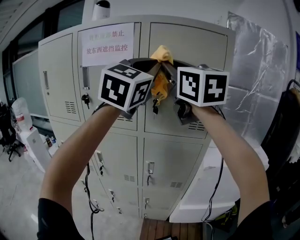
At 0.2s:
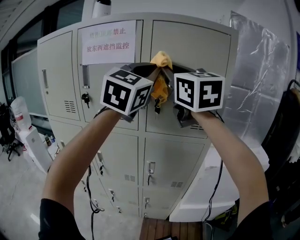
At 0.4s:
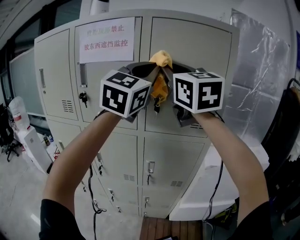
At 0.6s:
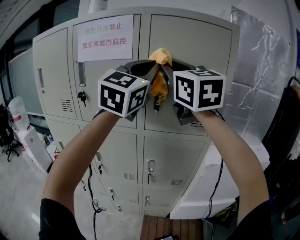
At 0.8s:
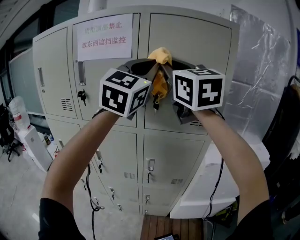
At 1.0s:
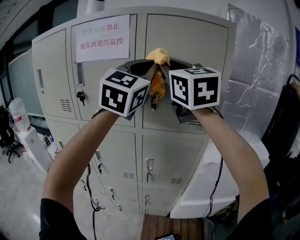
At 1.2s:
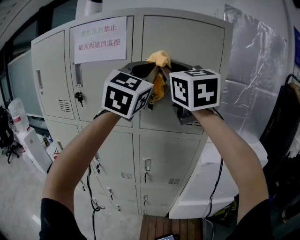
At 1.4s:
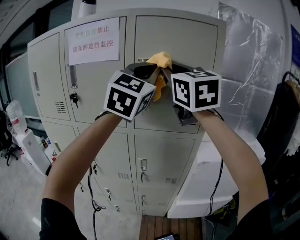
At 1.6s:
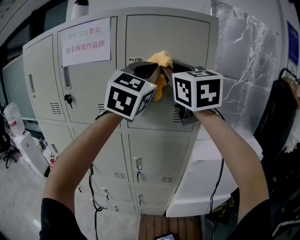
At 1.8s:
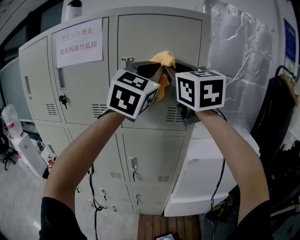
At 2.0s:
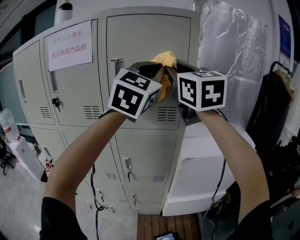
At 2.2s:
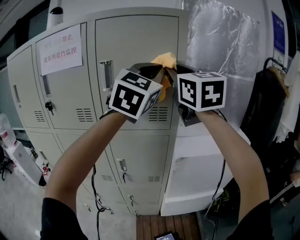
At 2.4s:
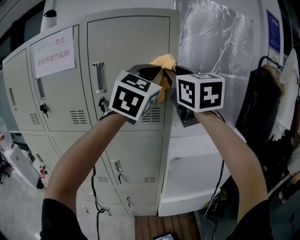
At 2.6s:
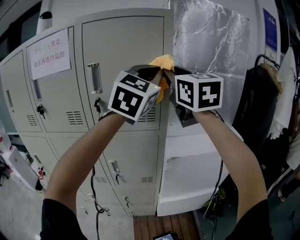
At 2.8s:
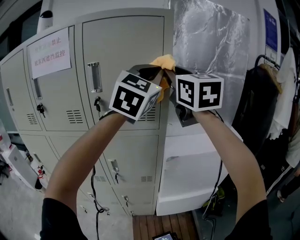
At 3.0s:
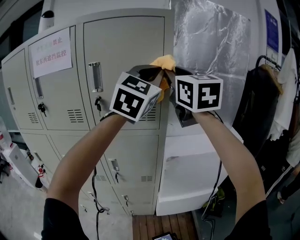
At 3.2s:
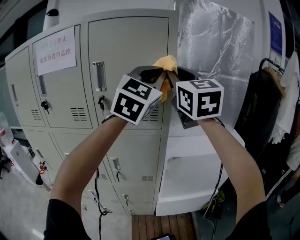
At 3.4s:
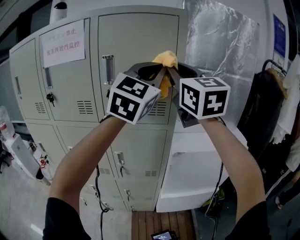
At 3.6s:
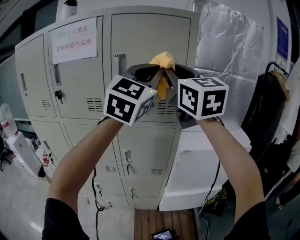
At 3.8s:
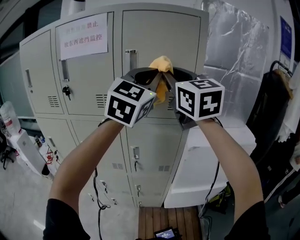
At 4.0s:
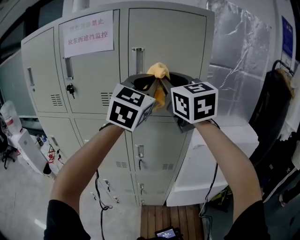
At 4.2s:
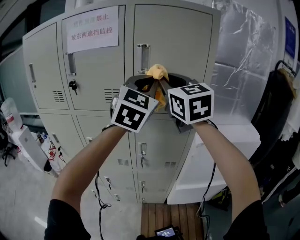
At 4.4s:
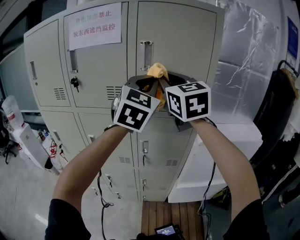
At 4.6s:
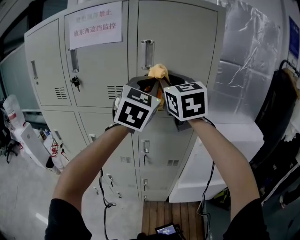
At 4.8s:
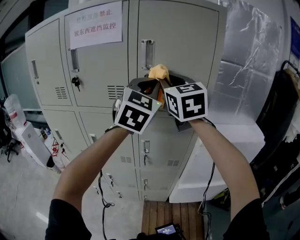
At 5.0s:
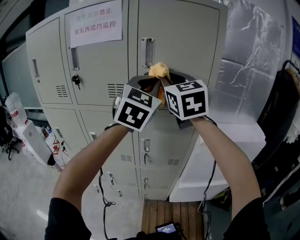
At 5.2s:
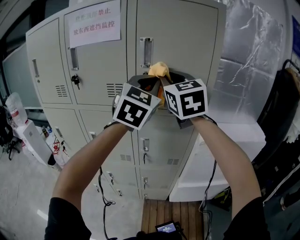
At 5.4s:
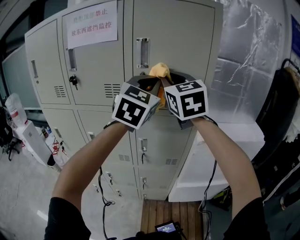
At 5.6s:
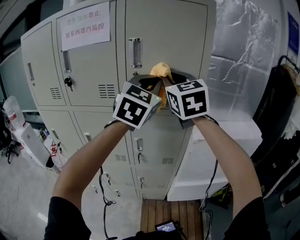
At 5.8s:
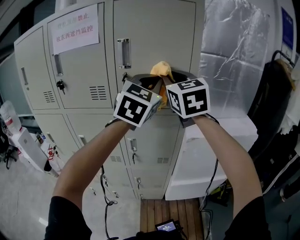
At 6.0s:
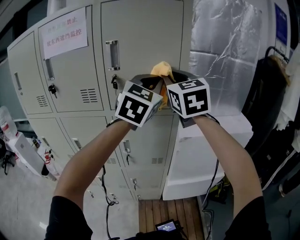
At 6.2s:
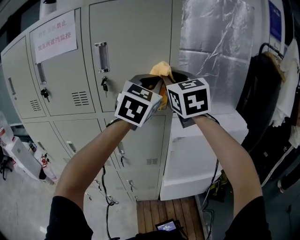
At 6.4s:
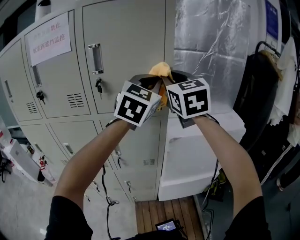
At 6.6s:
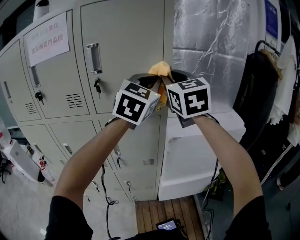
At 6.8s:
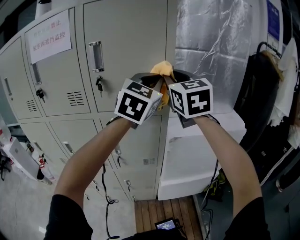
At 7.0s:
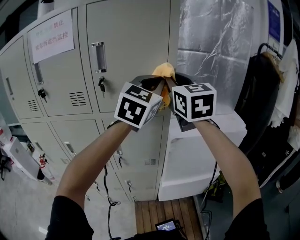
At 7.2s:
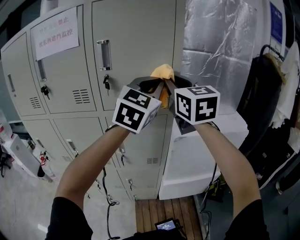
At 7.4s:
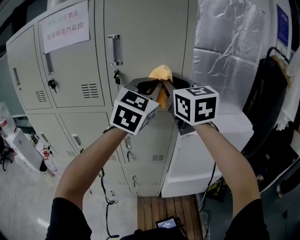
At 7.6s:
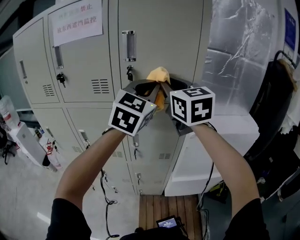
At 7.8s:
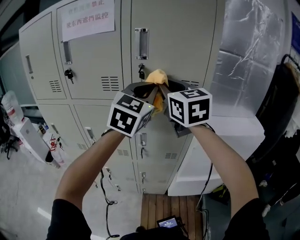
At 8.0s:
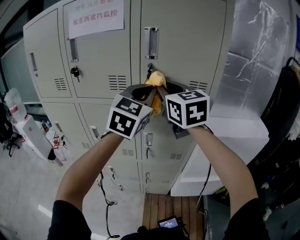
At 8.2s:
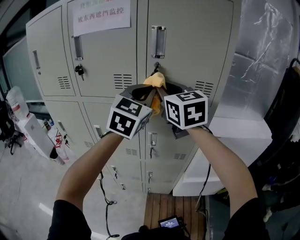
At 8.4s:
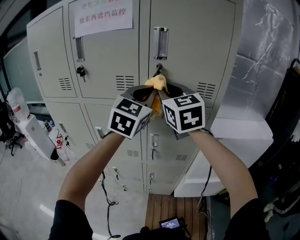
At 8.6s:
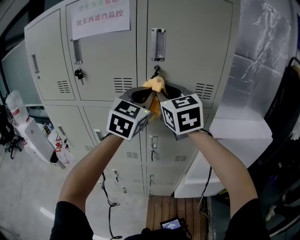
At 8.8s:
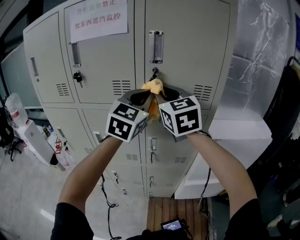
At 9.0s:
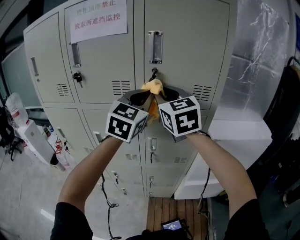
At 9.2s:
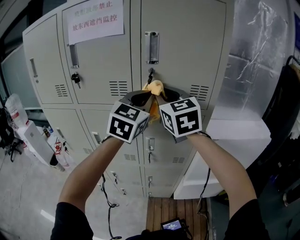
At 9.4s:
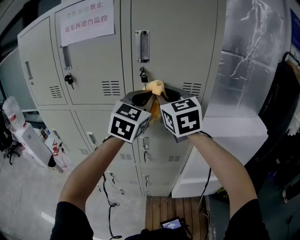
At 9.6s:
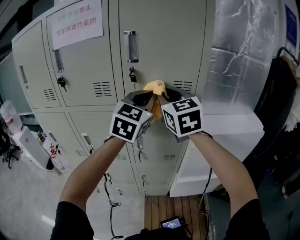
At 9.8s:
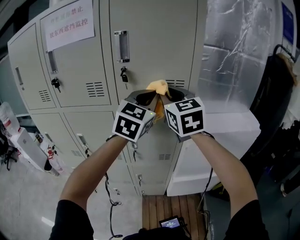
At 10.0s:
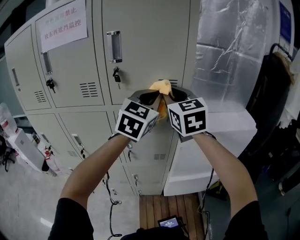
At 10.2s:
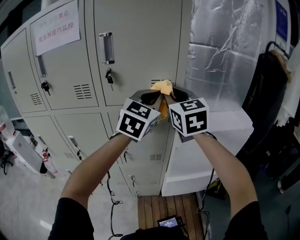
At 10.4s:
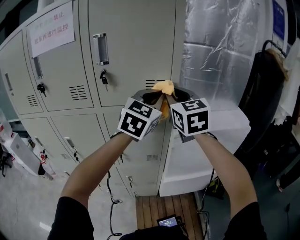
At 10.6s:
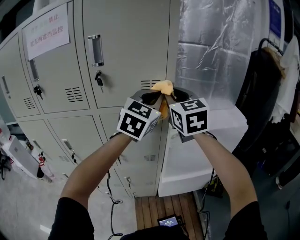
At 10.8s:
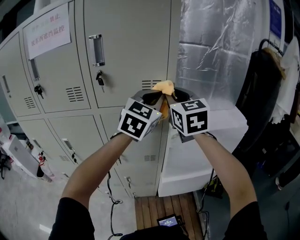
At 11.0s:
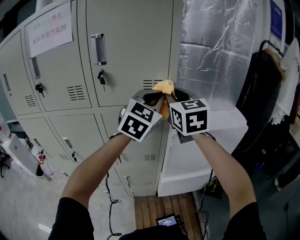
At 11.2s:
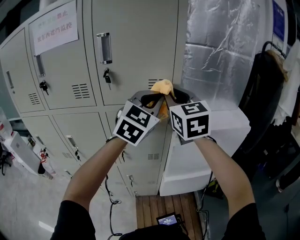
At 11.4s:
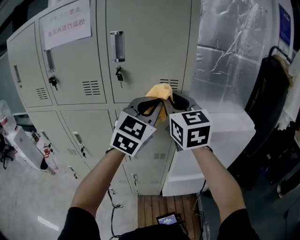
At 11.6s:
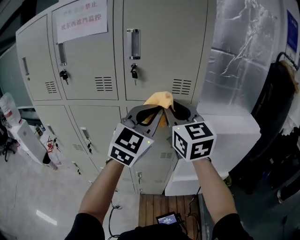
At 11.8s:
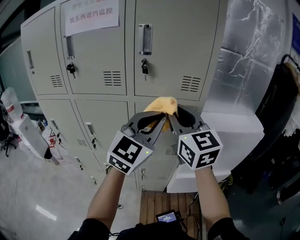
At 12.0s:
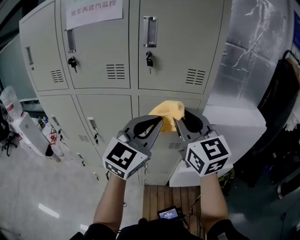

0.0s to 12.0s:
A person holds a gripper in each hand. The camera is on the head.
0.0s to 1.6s: The two grippers go approximately 5 cm to the right.
1.6s to 3.0s: The grippers both shift to the right by roughly 15 cm.
3.0s to 4.4s: The two grippers go approximately 20 cm to the left and downward.
4.4s to 6.0s: Both grippers move to the right, approximately 15 cm.
6.0s to 7.6s: The two grippers go approximately 5 cm to the left.
7.6s to 9.0s: Both grippers travel together to the left, some 10 cm.
9.0s to 10.4s: The grippers both shift to the right by about 20 cm.
10.4s to 12.0s: Both grippers travel together backward and to the left, roughly 20 cm.

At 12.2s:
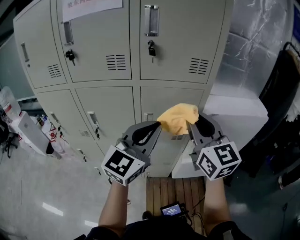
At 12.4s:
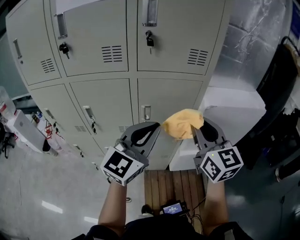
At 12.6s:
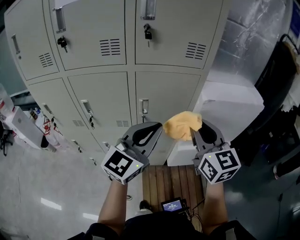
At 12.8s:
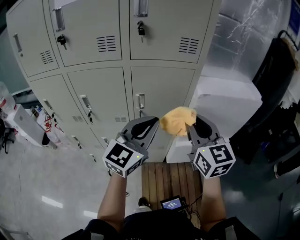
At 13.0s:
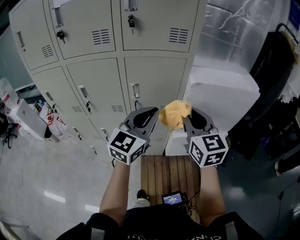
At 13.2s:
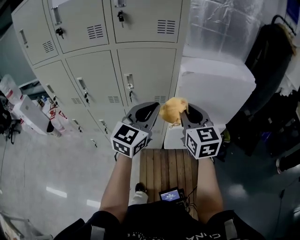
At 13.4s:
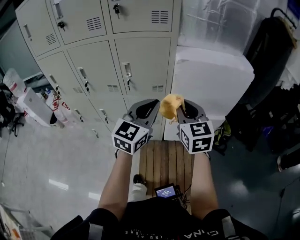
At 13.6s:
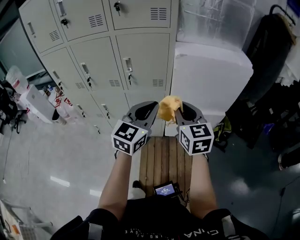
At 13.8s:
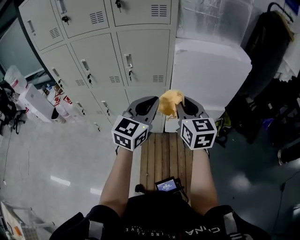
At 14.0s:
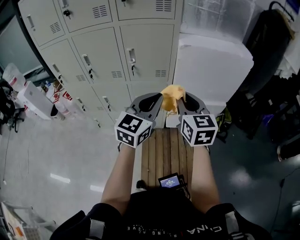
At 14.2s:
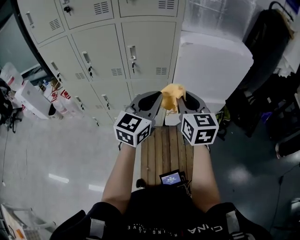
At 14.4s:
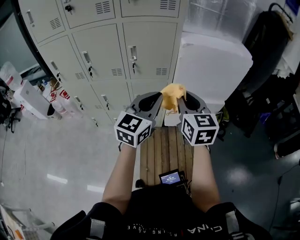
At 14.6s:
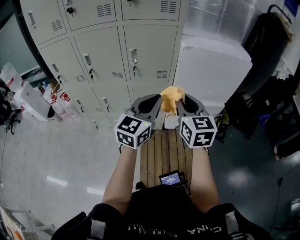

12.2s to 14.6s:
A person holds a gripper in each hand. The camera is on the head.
12.2s to 13.4s: The grippers both shift to the right, downward and backward by some 25 cm.
13.4s to 14.6s: Both grippers move backward, about 5 cm.

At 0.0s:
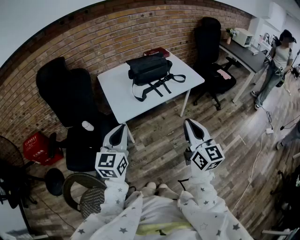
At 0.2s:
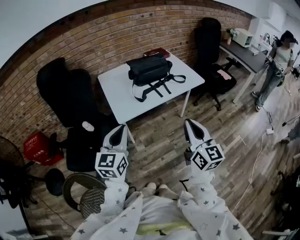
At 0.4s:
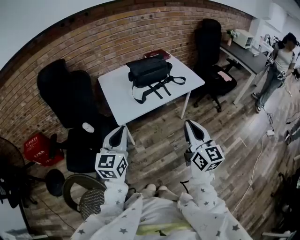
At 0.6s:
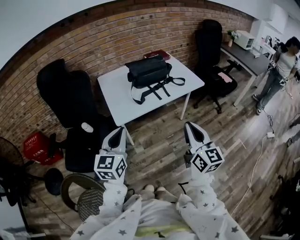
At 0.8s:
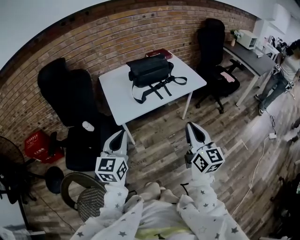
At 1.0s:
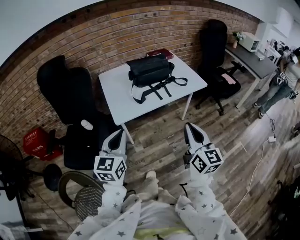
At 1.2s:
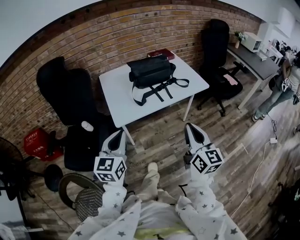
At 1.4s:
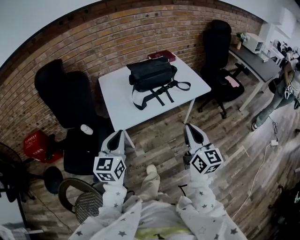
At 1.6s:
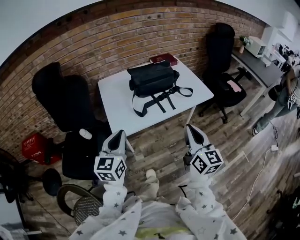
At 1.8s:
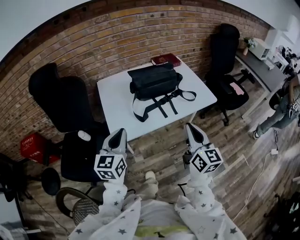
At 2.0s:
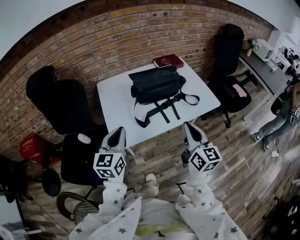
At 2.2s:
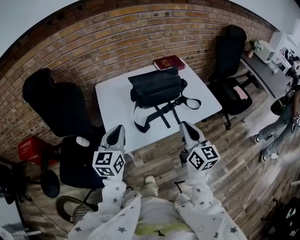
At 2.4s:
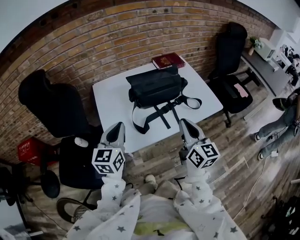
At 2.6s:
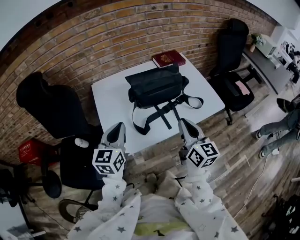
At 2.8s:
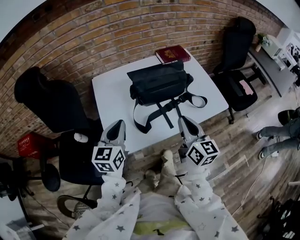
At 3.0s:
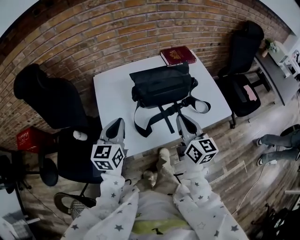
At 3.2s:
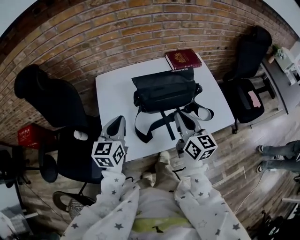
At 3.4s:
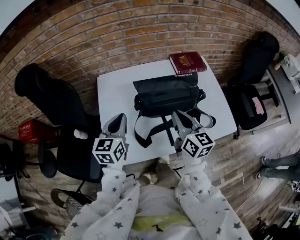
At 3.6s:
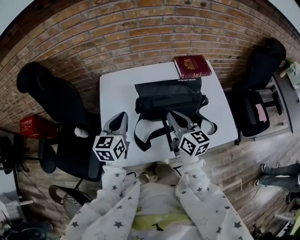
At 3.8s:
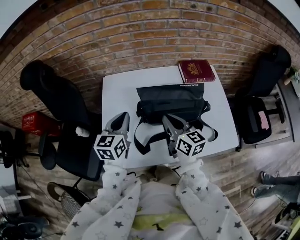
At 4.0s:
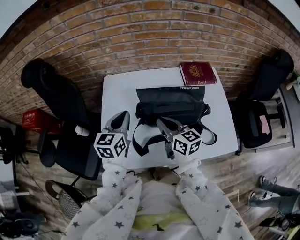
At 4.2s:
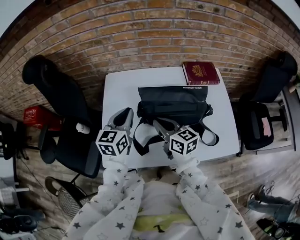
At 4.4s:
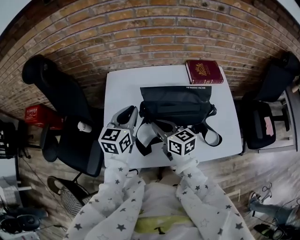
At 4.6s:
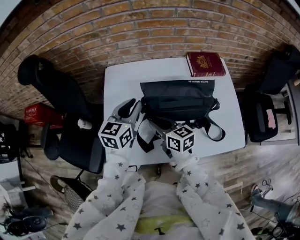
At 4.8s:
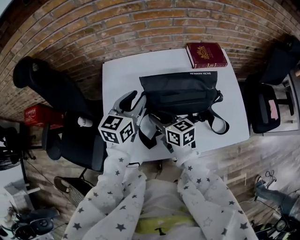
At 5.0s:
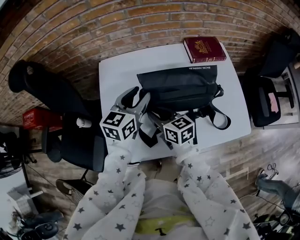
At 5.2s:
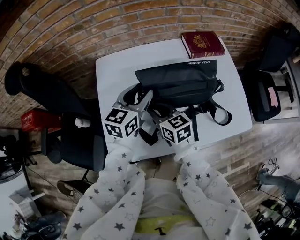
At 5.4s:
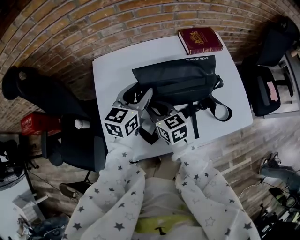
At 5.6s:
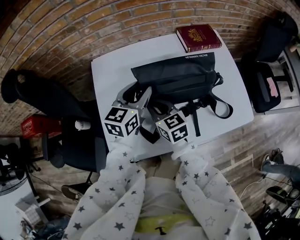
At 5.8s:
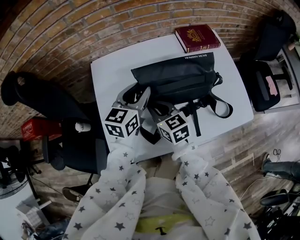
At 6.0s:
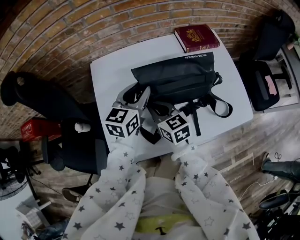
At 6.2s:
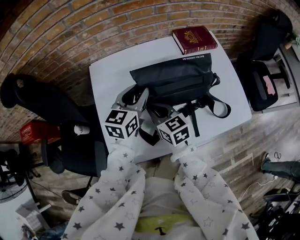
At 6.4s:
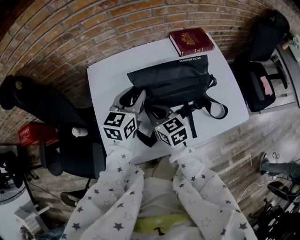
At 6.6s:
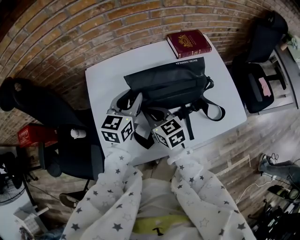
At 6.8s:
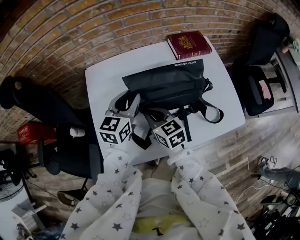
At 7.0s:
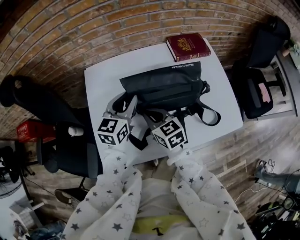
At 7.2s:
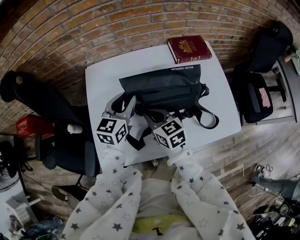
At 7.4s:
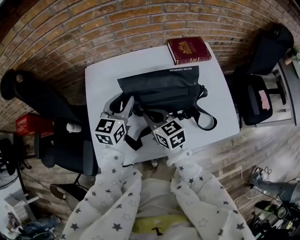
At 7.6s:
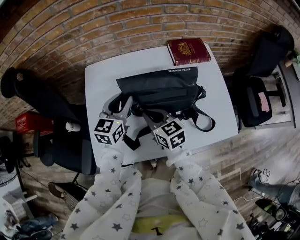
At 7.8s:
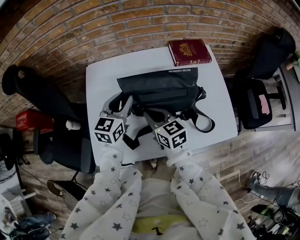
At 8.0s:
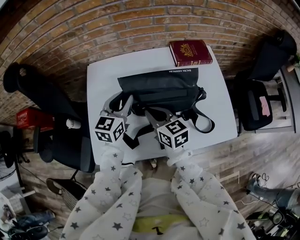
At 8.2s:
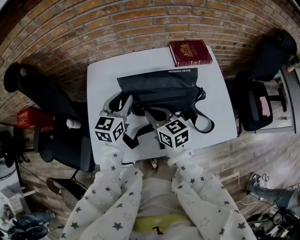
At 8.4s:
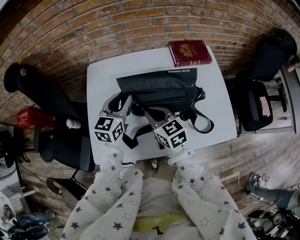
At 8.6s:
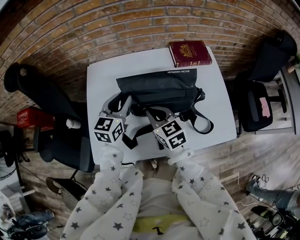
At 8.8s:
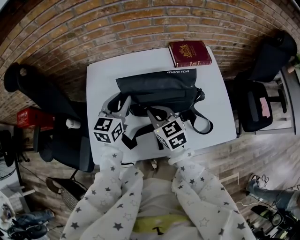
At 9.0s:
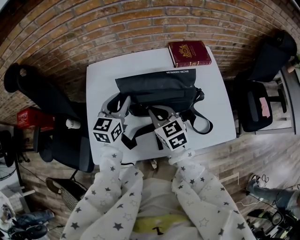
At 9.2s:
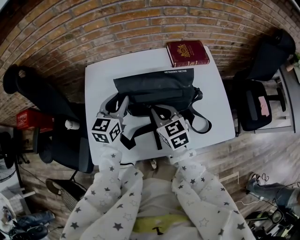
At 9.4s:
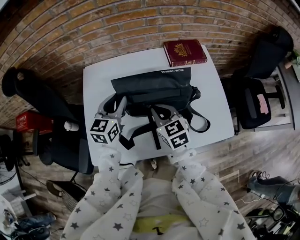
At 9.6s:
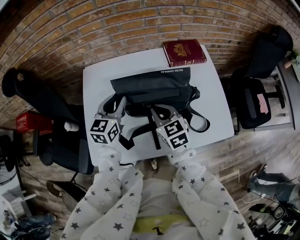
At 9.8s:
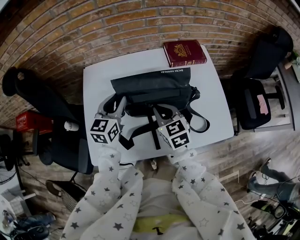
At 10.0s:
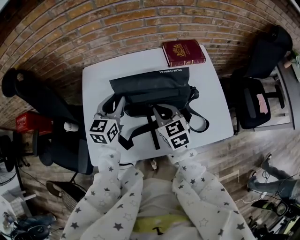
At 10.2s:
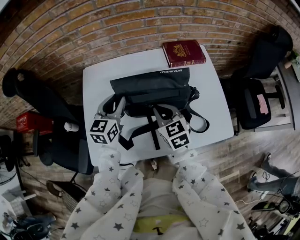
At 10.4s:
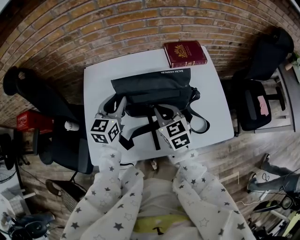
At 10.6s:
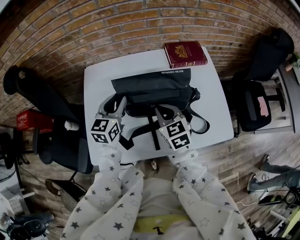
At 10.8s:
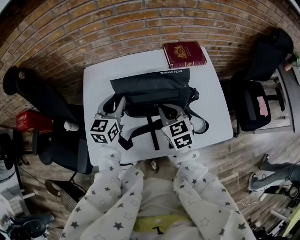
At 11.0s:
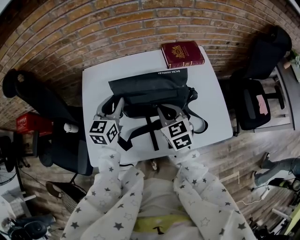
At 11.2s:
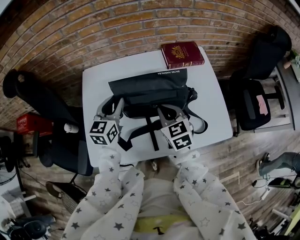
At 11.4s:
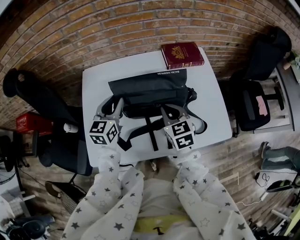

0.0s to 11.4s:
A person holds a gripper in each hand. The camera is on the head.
0.0s to 1.4s: The grippers both shift forward by about 5 cm.
1.4s to 2.8s: The grippers both shift forward by approximately 25 cm.
2.8s to 4.2s: The right gripper ends up about 20 cm from where it was, and rotates approximately 40 degrees. Meanwhile the left gripper shifts by some 15 cm.
4.2s to 5.6s: The right gripper moves downward, roughly 5 cm, while the left gripper is displaced to the right by approximately 5 cm, and opens its fingers.
5.6s to 7.2s: The grippers make only small movements.
7.2s to 8.6s: There are only small adjustments of the grippers.
8.6s to 10.0s: The right gripper goes approximately 5 cm to the right.
10.0s to 11.4s: The grippers move only a little.
